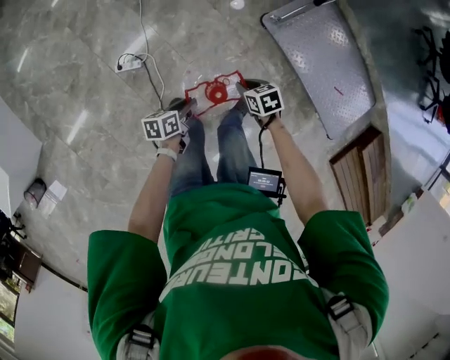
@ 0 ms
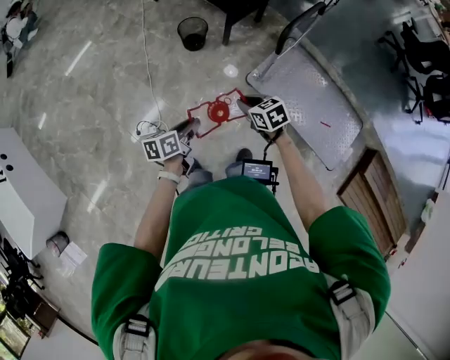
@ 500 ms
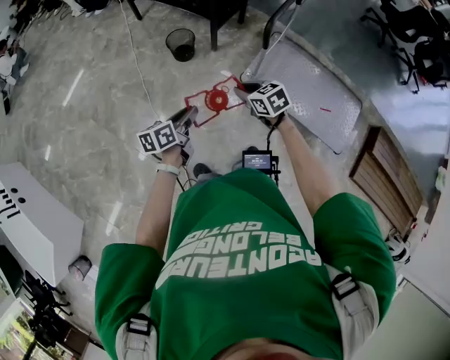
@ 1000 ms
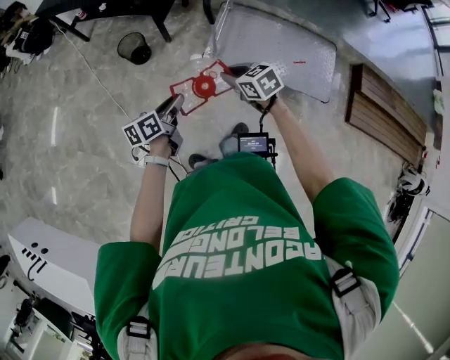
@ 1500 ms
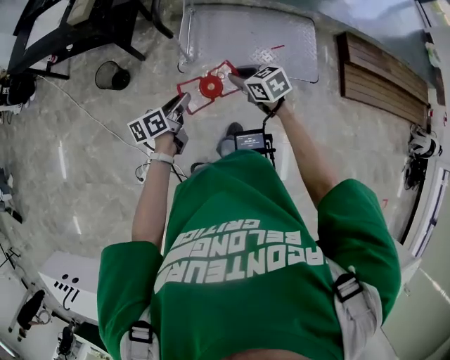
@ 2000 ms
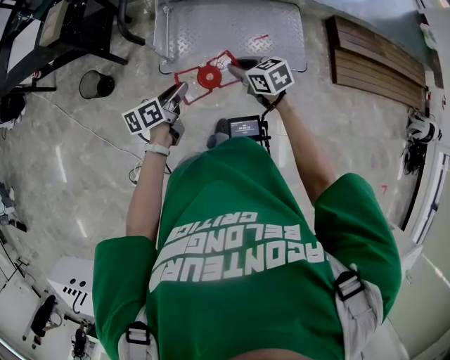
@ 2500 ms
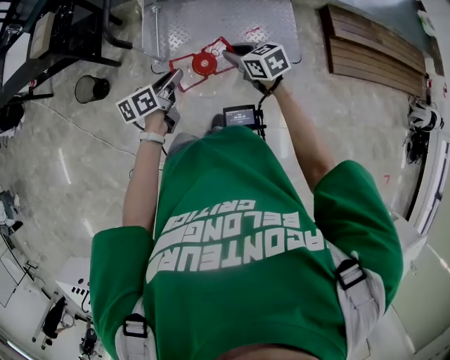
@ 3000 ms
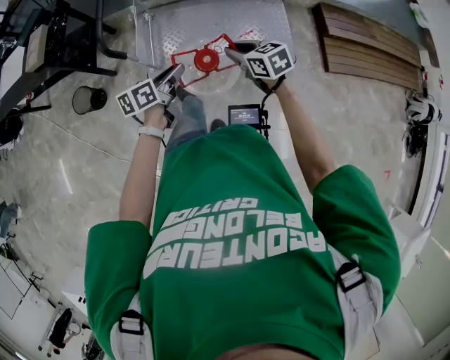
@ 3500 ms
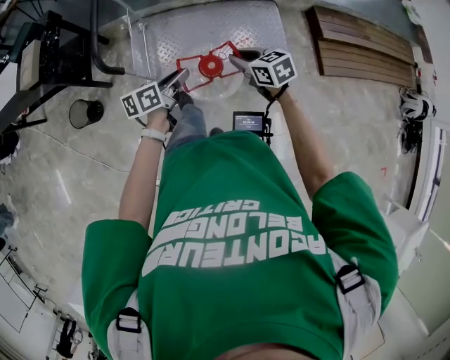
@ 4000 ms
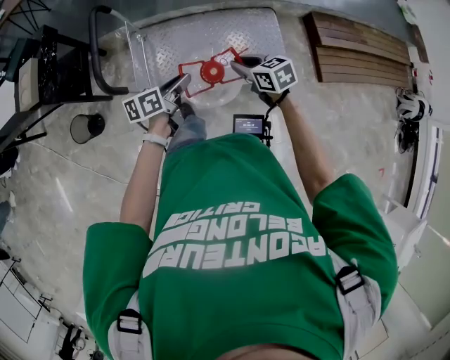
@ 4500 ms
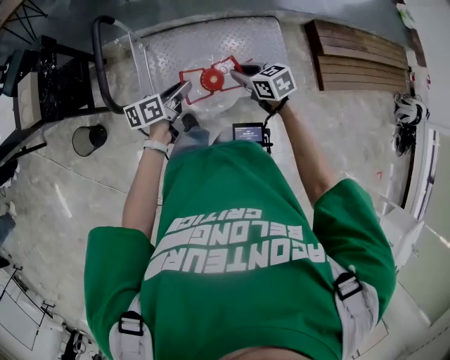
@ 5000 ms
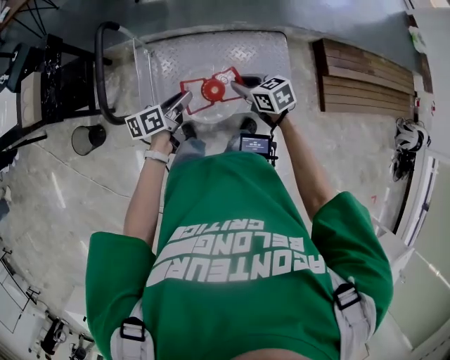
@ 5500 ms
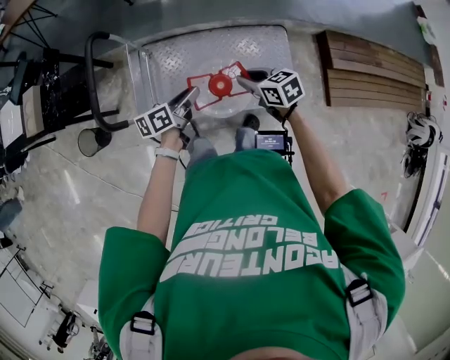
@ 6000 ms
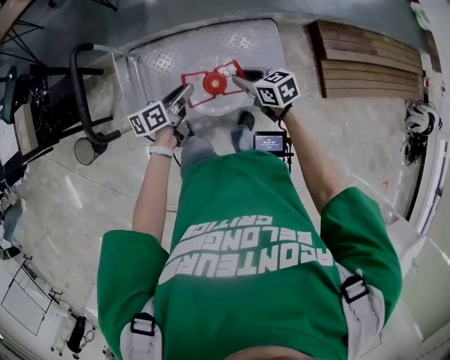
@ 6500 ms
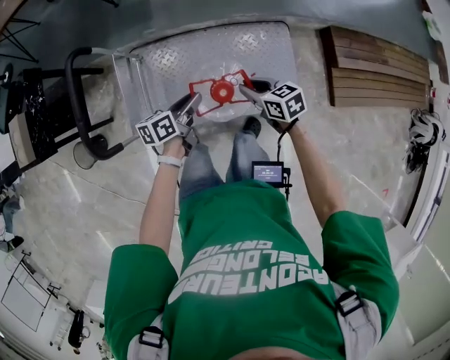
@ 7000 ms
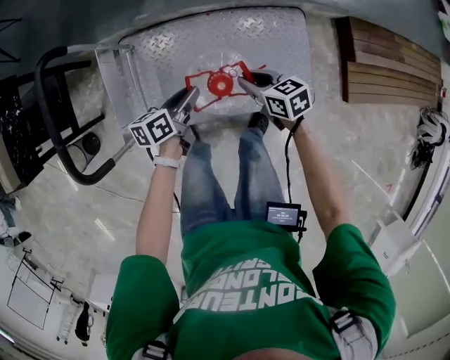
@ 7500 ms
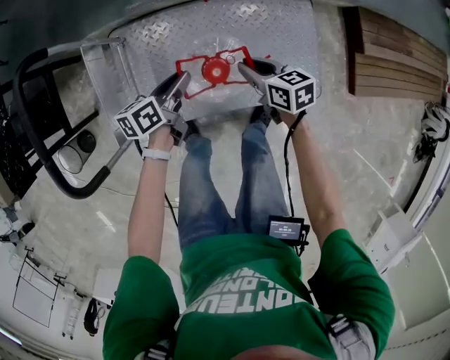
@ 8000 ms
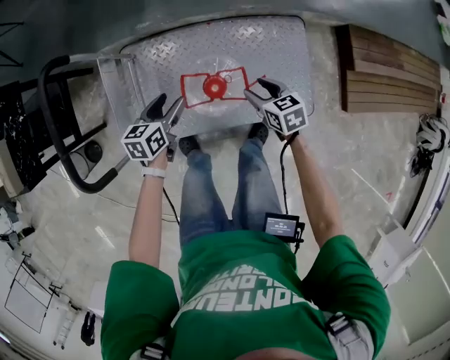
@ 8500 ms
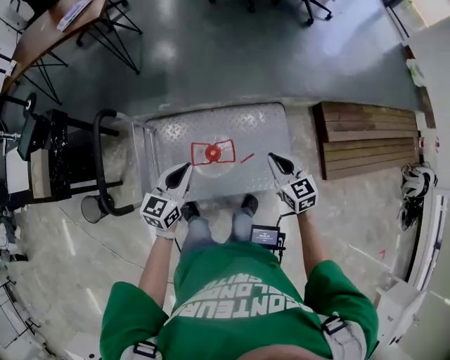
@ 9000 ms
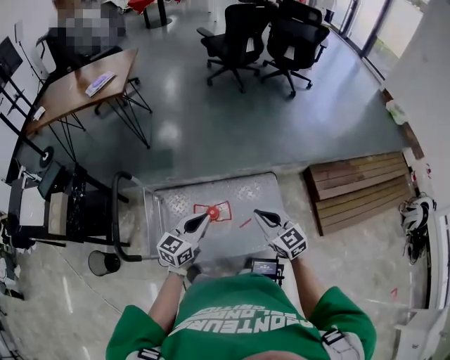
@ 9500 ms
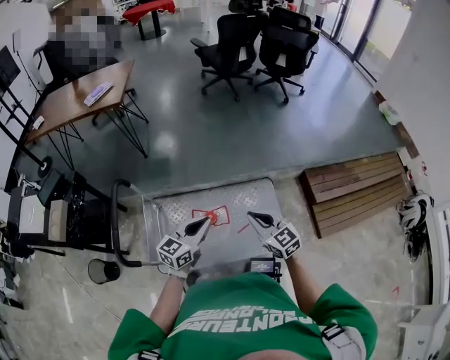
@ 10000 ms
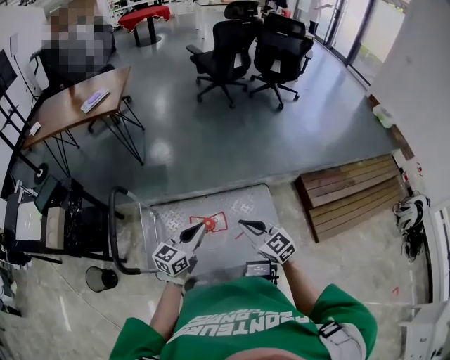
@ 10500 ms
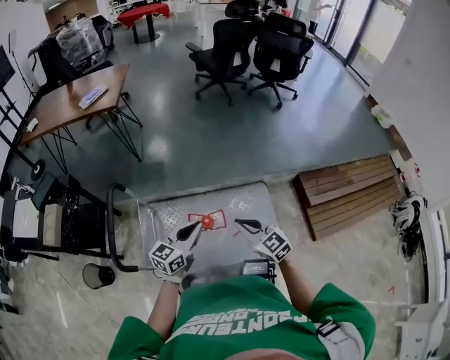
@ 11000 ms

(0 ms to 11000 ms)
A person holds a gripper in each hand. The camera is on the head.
0 ms - 2000 ms: The right gripper is displaced upward by approximately 25 cm, and swivels about 40 degrees. The left gripper changes place by about 35 cm, and turns by approximately 40 degrees.
2000 ms - 3500 ms: The two grippers go about 20 cm to the right and forward.
3500 ms - 5500 ms: The two grippers go some 20 cm forward.
5500 ms - 7500 ms: The grippers both shift downward and forward by some 25 cm.
7500 ms - 9000 ms: The left gripper moves upward, roughly 25 cm, twists roughly 40 degrees clockwise, seen from behind, and closes up. Meanwhile the right gripper is displaced upward and to the right by about 25 cm, changes its angle by approximately 30 degrees, and opens, then closes again.
9000 ms - 11000 ms: The left gripper shifts some 10 cm upward and to the right; the right gripper shifts some 15 cm upward, to the left and backward, and turns by some 20 degrees.

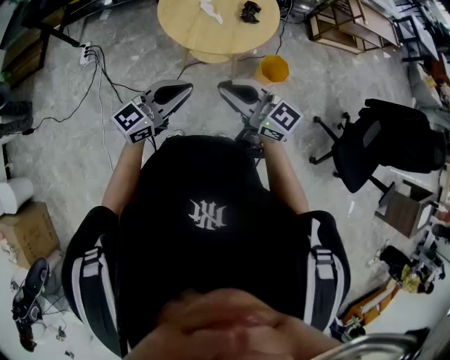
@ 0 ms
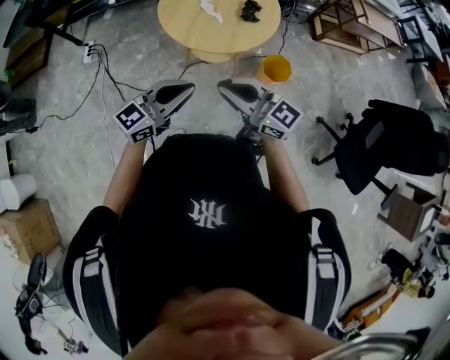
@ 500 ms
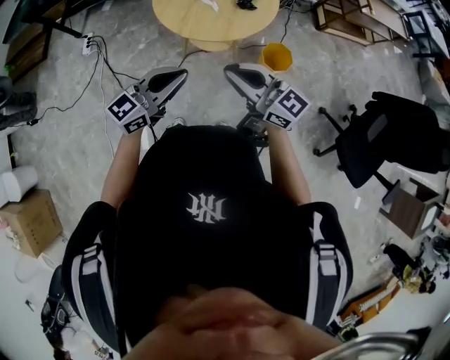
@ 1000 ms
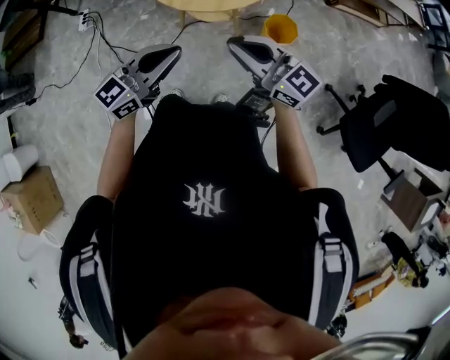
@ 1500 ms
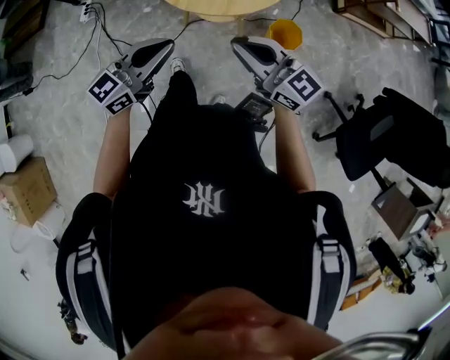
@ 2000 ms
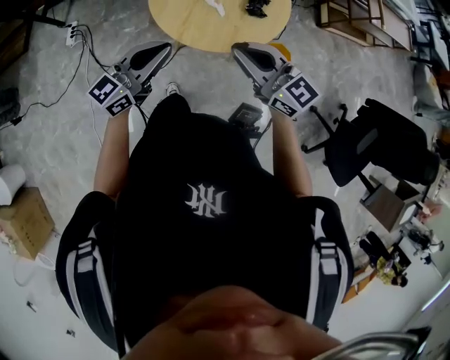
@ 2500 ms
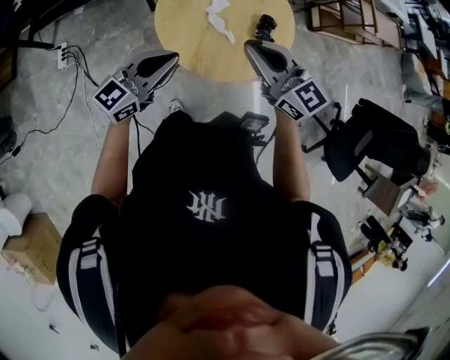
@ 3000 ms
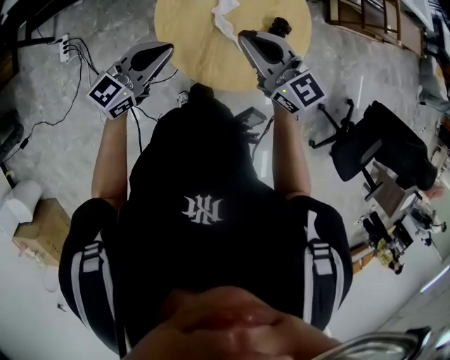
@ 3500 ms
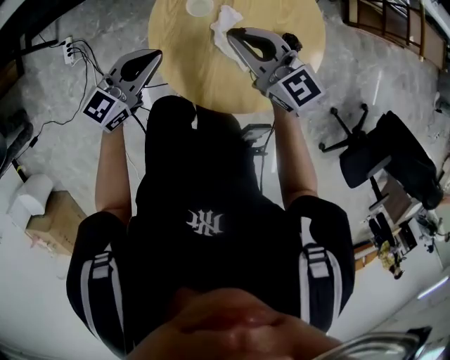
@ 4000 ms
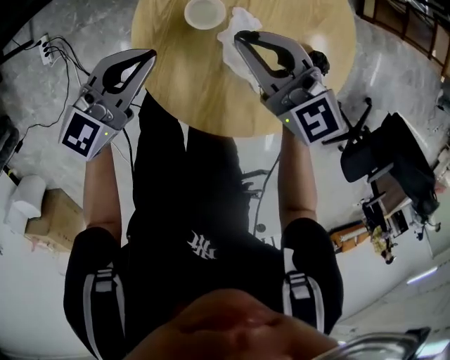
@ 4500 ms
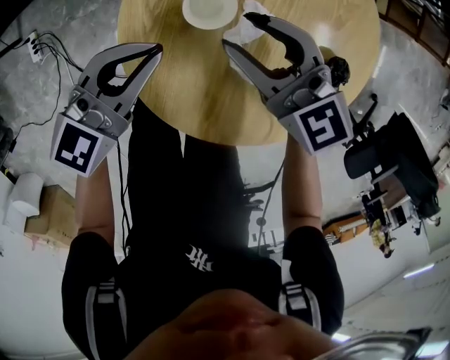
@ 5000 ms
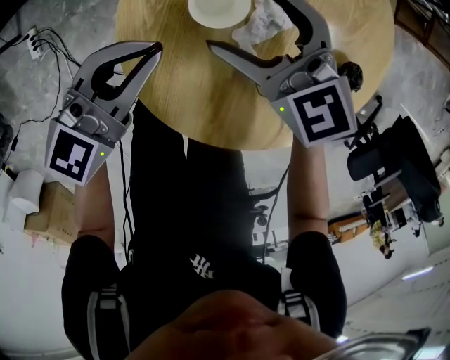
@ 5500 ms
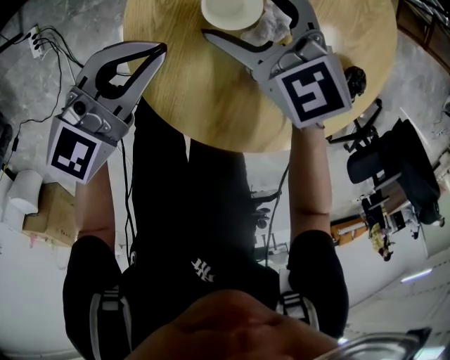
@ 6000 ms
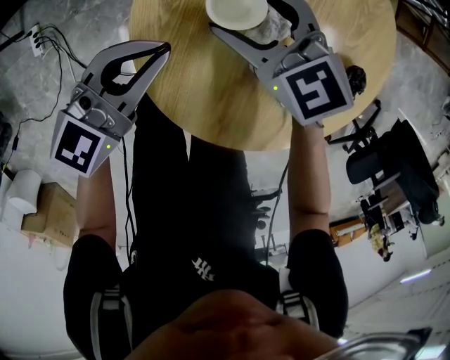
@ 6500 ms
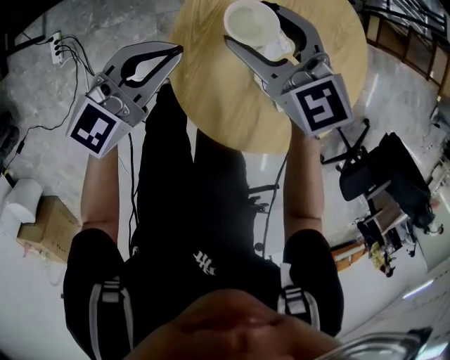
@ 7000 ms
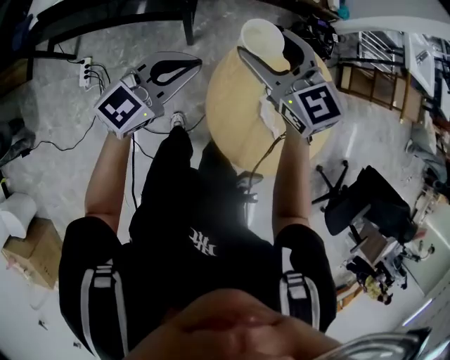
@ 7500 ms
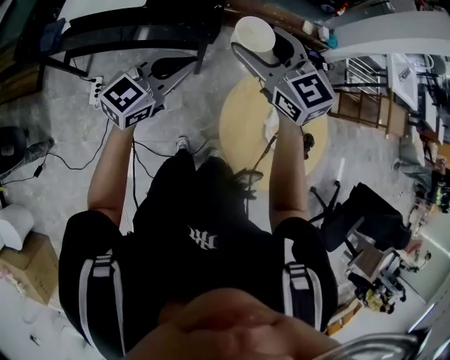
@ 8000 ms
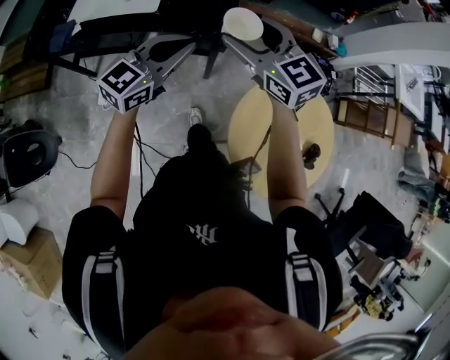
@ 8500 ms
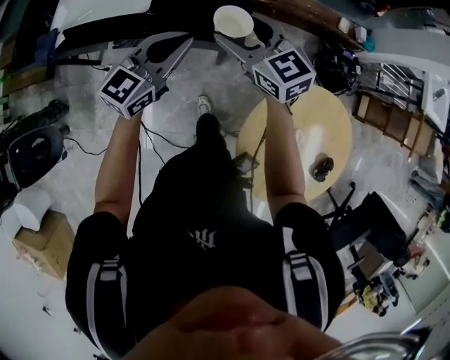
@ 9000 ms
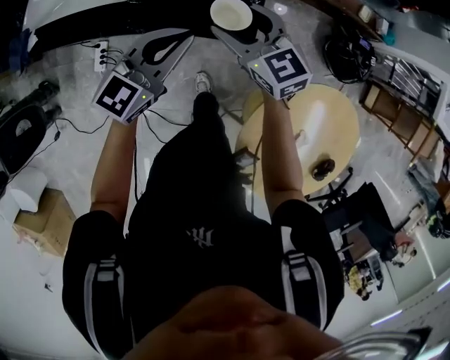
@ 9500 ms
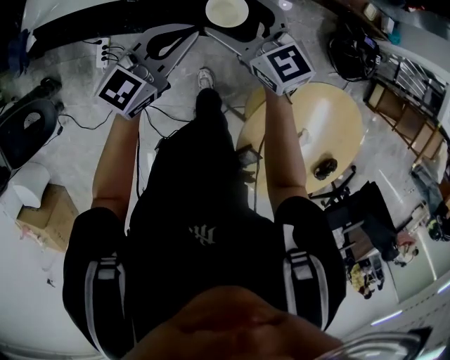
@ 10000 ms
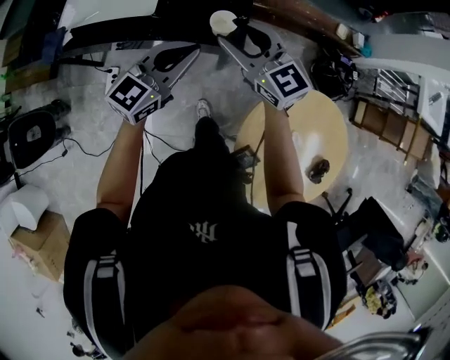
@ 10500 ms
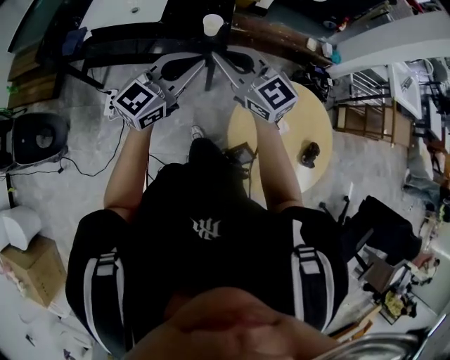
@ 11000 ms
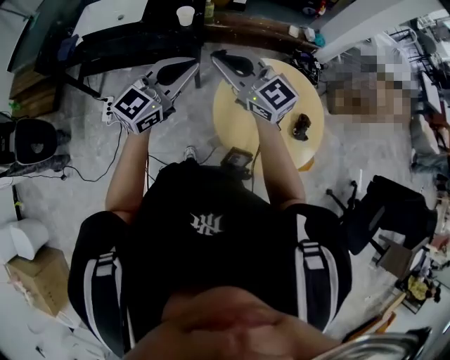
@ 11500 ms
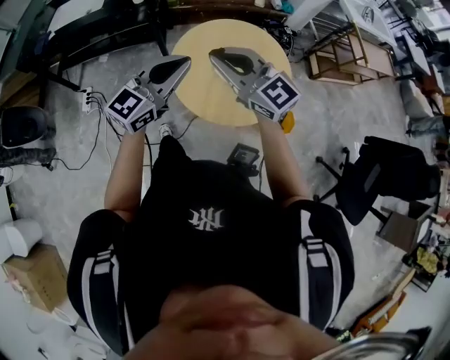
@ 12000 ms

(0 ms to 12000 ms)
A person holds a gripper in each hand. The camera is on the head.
0 ms - 2000 ms: The right gripper goes some 10 cm to the right, while the left gripper moves some 5 cm.
2000 ms - 4000 ms: The pair of grippers is taken forward, about 50 cm.
4000 ms - 6000 ms: The left gripper is displaced downward and forward by some 10 cm. The right gripper heads downward and forward, covering approximately 20 cm, swivels approximately 20 degrees, and opens up.
6000 ms - 8000 ms: The left gripper heads forward, upward and to the left, covering roughly 35 cm. Meanwhile the right gripper travels upward, forward and to the left by about 40 cm.
8000 ms - 10000 ms: The left gripper heads forward and downward, covering roughly 25 cm. Meanwhile the right gripper shifts roughly 30 cm downward, forward and to the left.
10000 ms - 12000 ms: Both grippers are carried backward and to the right, about 60 cm. The right gripper is displaced upward by about 25 cm, swivels roughly 20 degrees, and closes. Meanwhile the left gripper turns by approximately 20 degrees.

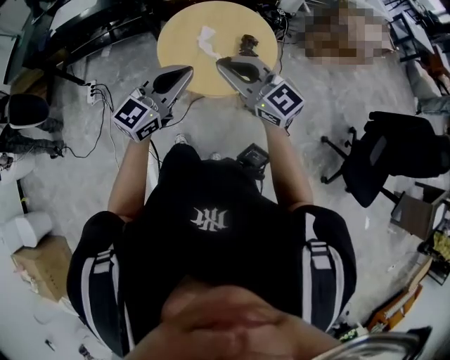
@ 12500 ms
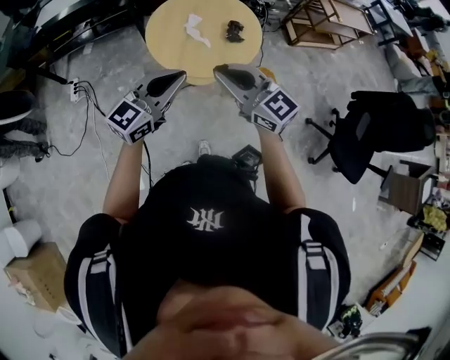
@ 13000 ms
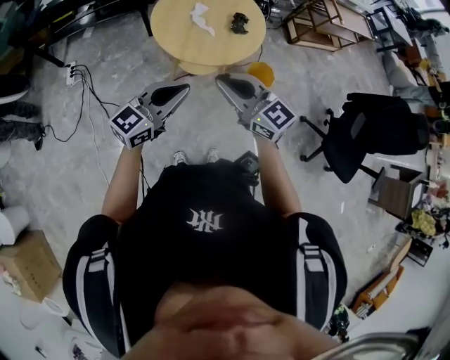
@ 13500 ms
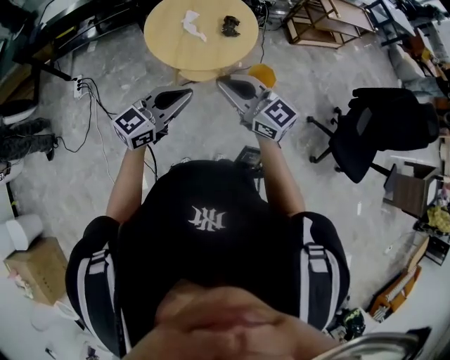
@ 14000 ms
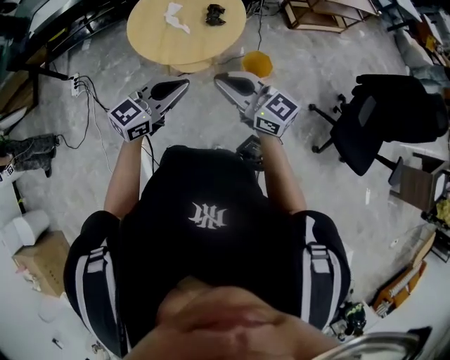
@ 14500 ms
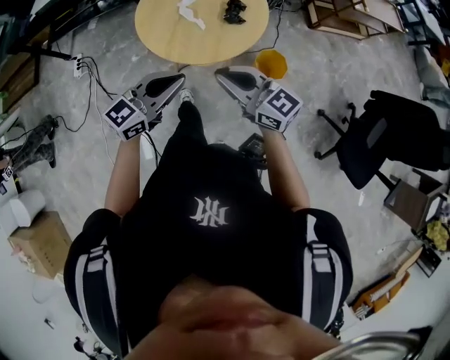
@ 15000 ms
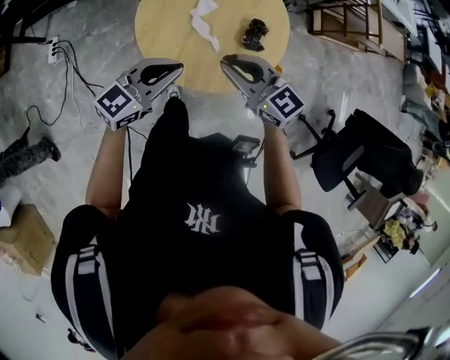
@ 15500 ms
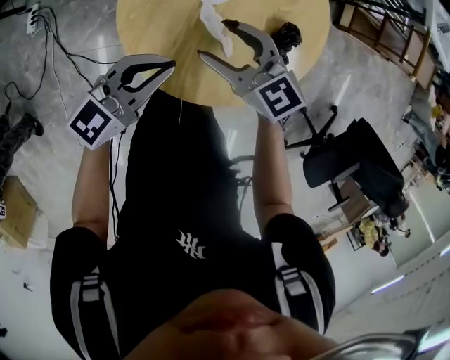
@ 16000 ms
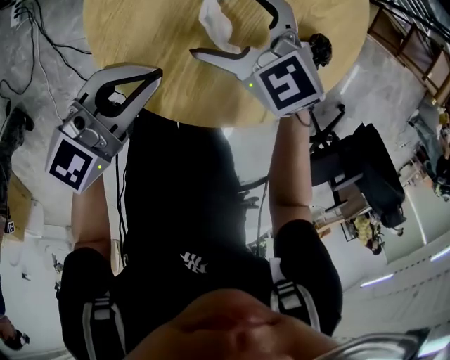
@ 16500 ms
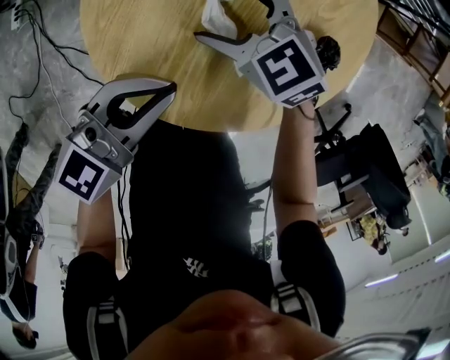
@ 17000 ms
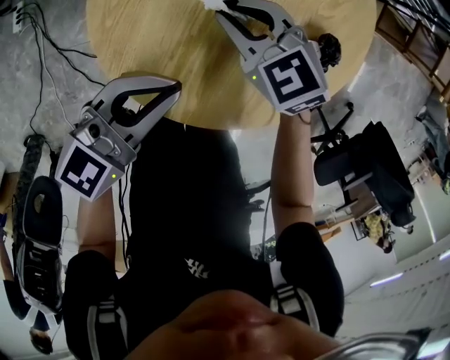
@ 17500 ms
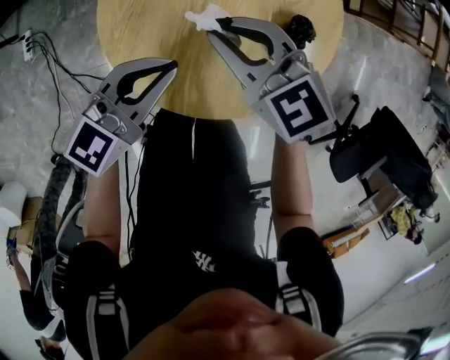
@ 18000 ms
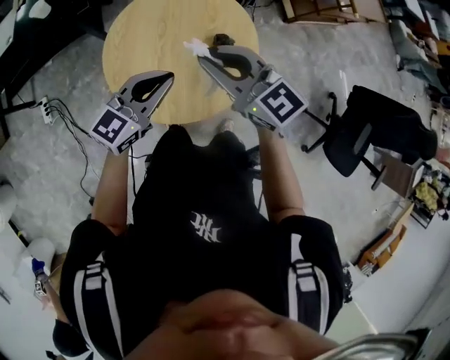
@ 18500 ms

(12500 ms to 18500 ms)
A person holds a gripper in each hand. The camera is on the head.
12500 ms - 14500 ms: The left gripper heads backward, to the right and downward, covering about 20 cm, while the right gripper goes about 20 cm backward and to the right.
14500 ms - 16500 ms: The pair of grippers is taken forward, approximately 40 cm. Both grippers move downward, some 30 cm. The right gripper points its fingers roughly 40 degrees further downward, and opens.
16500 ms - 18500 ms: The right gripper travels upward by some 30 cm, rotates approximately 40 degrees, and closes its fingers, while the left gripper heads upward and to the right, covering about 20 cm.
